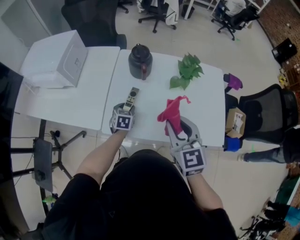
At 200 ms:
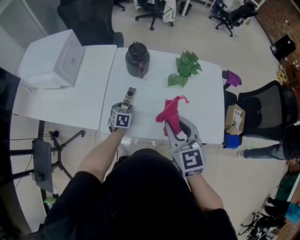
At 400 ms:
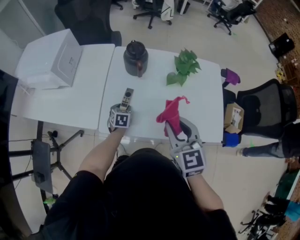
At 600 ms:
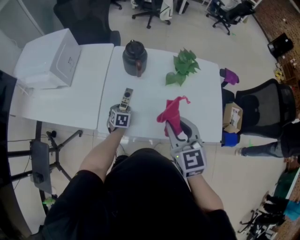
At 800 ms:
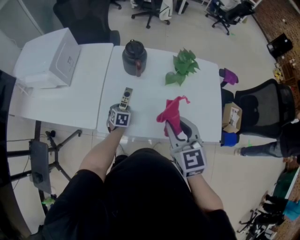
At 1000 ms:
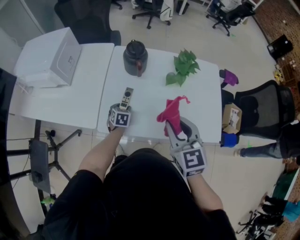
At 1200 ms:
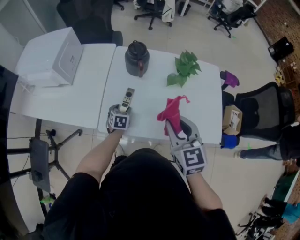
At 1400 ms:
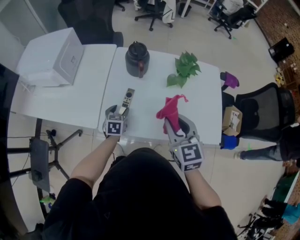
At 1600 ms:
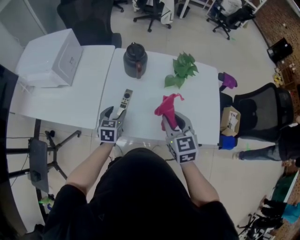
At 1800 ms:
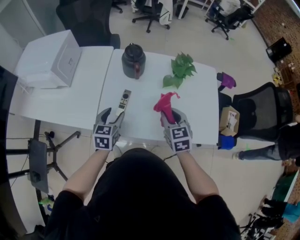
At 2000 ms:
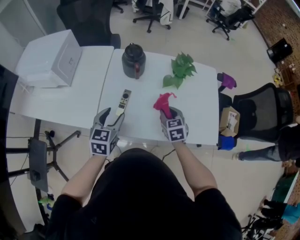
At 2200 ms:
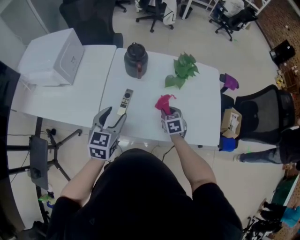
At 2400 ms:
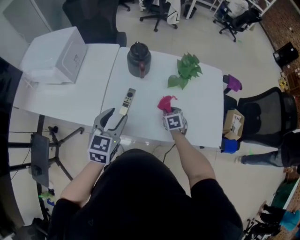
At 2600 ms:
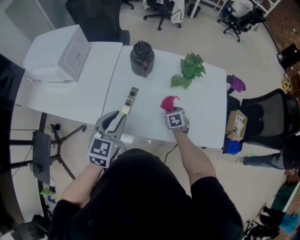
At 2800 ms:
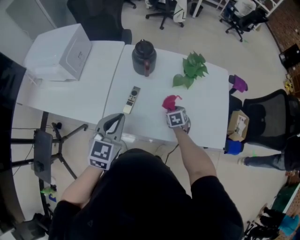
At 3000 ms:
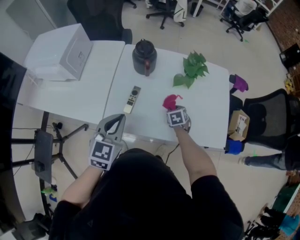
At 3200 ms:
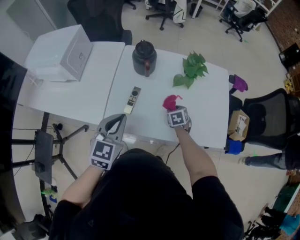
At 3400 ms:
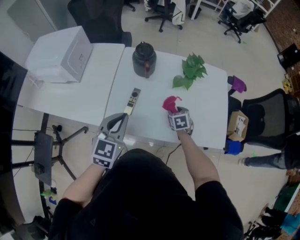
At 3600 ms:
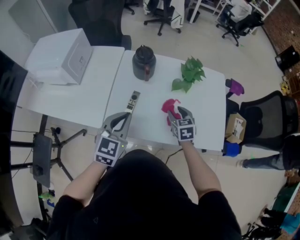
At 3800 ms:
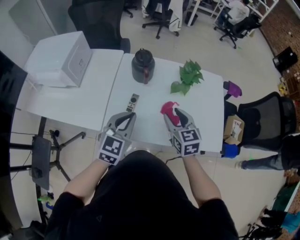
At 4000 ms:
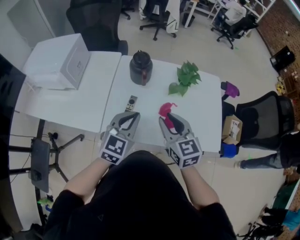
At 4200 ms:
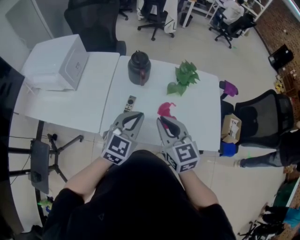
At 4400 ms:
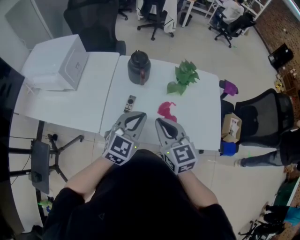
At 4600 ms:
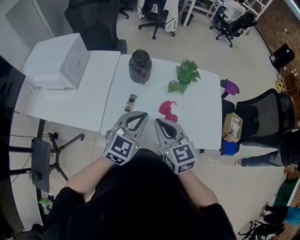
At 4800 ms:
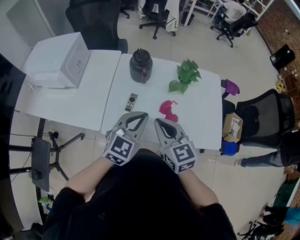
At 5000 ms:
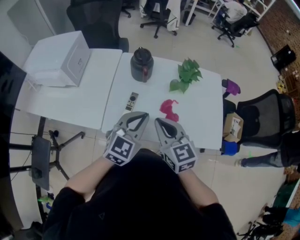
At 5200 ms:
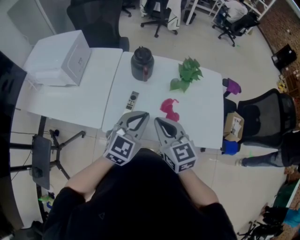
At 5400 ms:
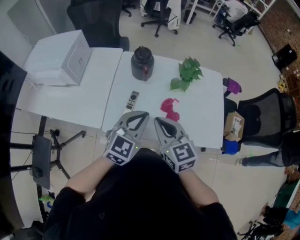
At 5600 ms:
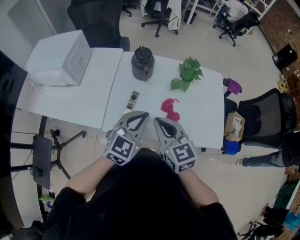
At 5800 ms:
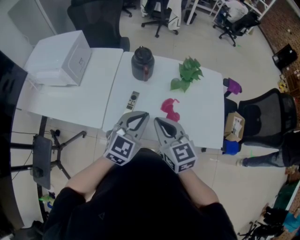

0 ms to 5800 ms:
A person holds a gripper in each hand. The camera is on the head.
0 ms to 1400 ms: There are only small adjustments of the grippers.
1400 ms to 2800 ms: The right gripper moves downward, some 30 cm, and points its fingers approximately 40 degrees further downward, while the left gripper heads upward and backward, covering about 25 cm, turns by approximately 30 degrees, and closes.
2800 ms to 4400 ms: The right gripper heads upward and backward, covering approximately 30 cm, angles its fingers upward, by about 40 degrees, and closes its fingers, while the left gripper goes approximately 10 cm to the right.
4400 ms to 5800 ms: The grippers move only a little.

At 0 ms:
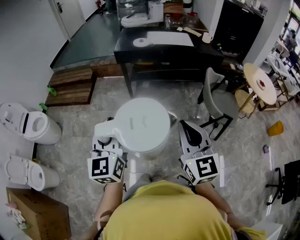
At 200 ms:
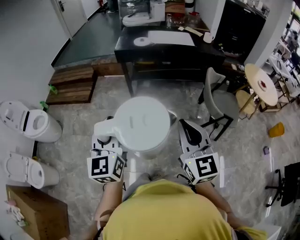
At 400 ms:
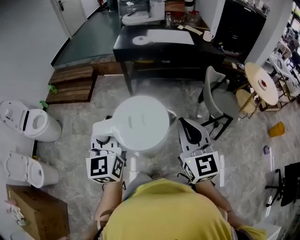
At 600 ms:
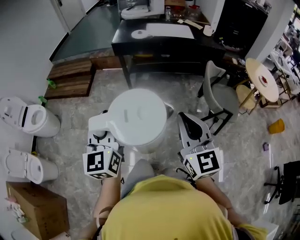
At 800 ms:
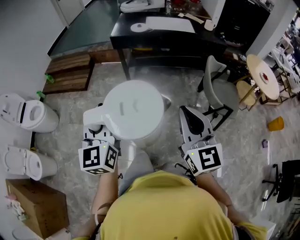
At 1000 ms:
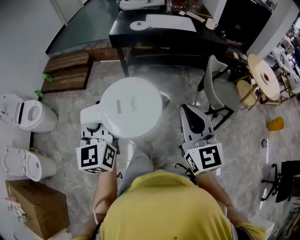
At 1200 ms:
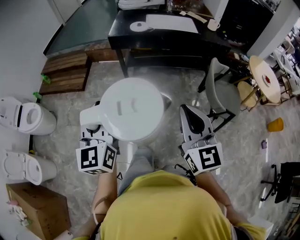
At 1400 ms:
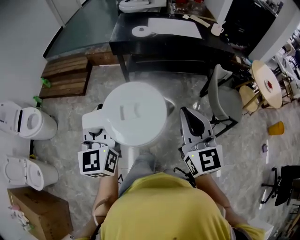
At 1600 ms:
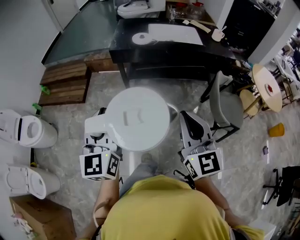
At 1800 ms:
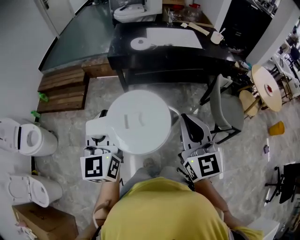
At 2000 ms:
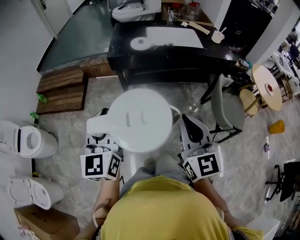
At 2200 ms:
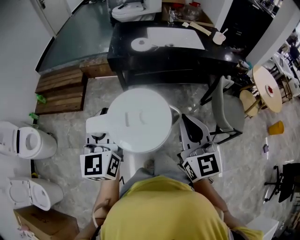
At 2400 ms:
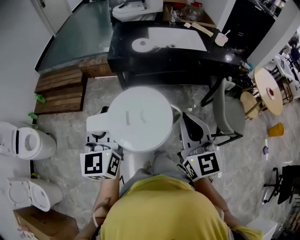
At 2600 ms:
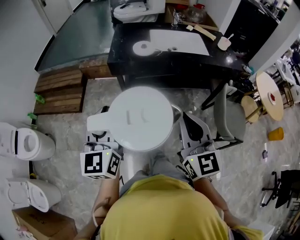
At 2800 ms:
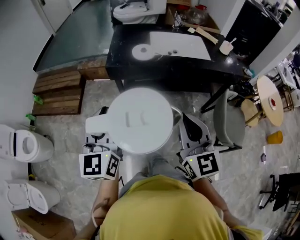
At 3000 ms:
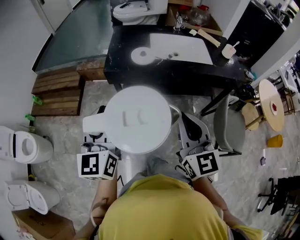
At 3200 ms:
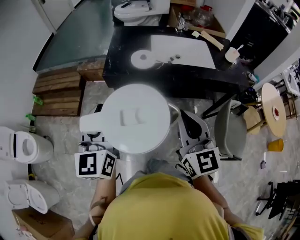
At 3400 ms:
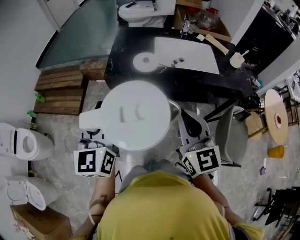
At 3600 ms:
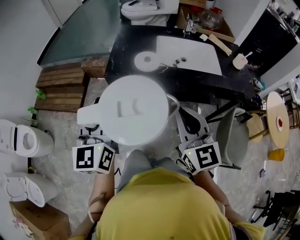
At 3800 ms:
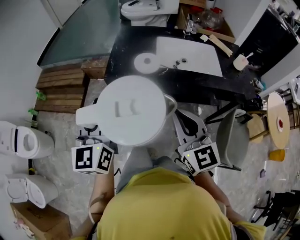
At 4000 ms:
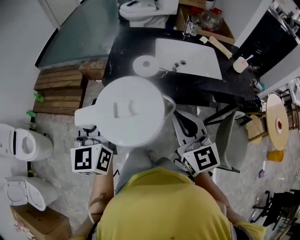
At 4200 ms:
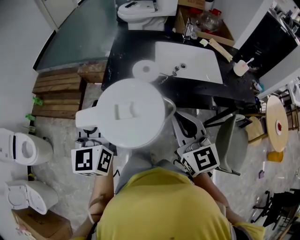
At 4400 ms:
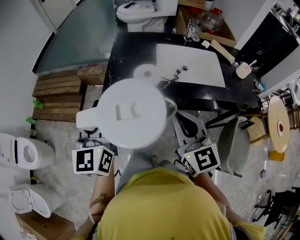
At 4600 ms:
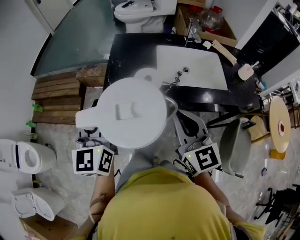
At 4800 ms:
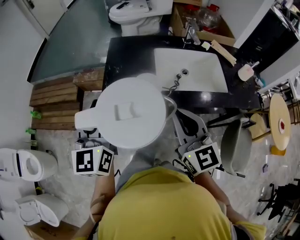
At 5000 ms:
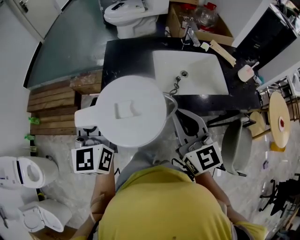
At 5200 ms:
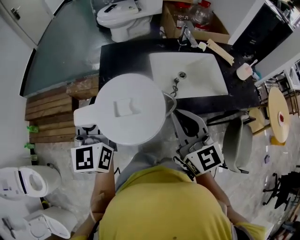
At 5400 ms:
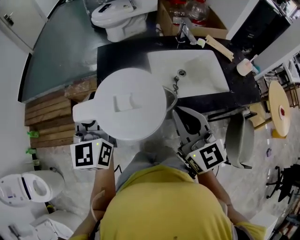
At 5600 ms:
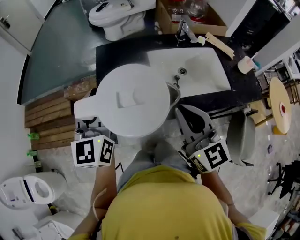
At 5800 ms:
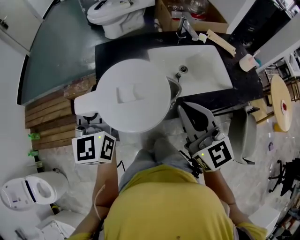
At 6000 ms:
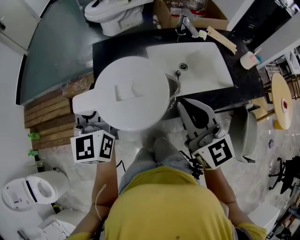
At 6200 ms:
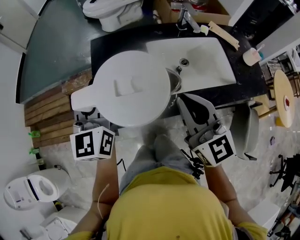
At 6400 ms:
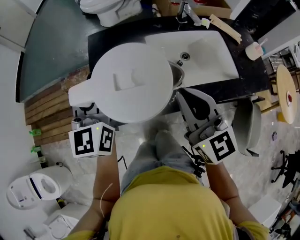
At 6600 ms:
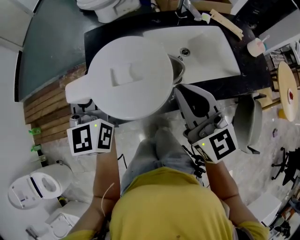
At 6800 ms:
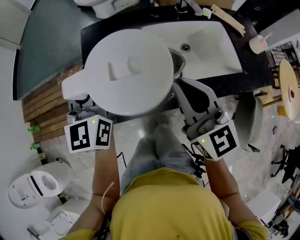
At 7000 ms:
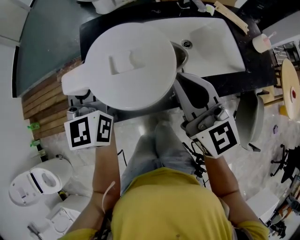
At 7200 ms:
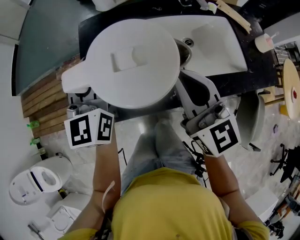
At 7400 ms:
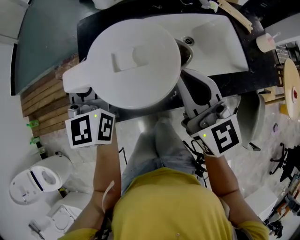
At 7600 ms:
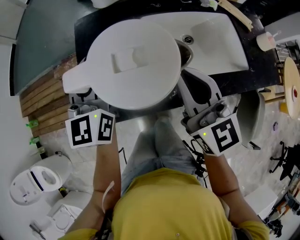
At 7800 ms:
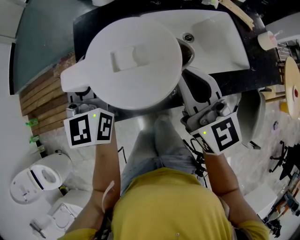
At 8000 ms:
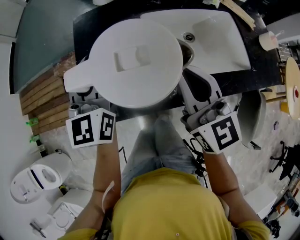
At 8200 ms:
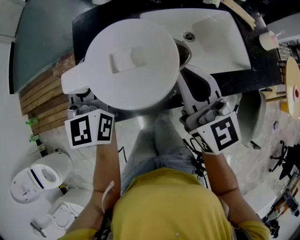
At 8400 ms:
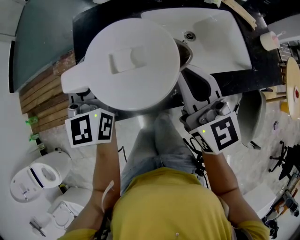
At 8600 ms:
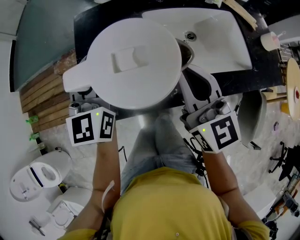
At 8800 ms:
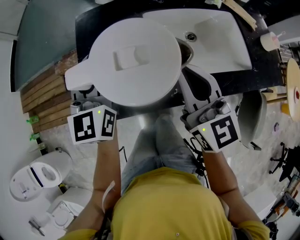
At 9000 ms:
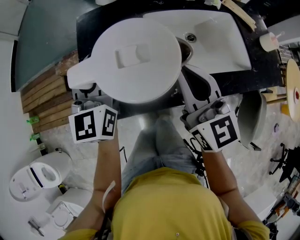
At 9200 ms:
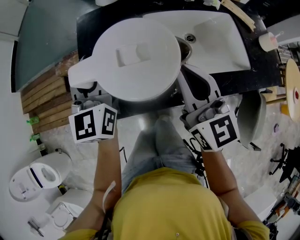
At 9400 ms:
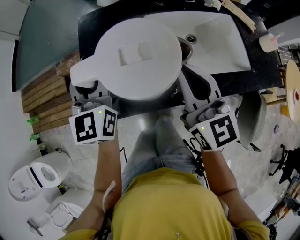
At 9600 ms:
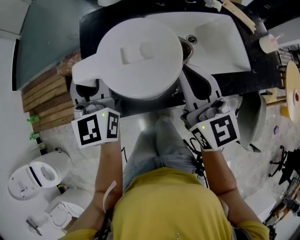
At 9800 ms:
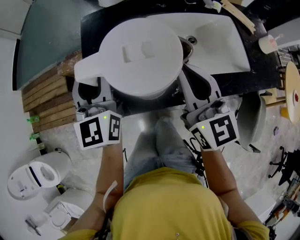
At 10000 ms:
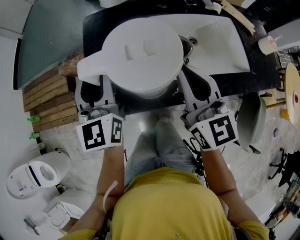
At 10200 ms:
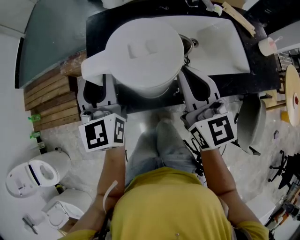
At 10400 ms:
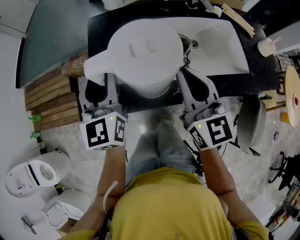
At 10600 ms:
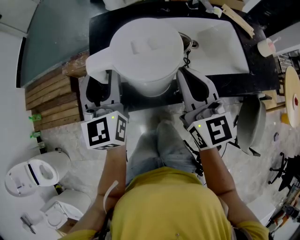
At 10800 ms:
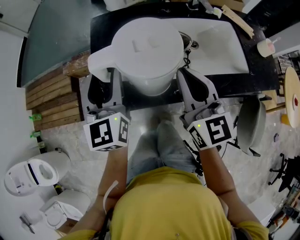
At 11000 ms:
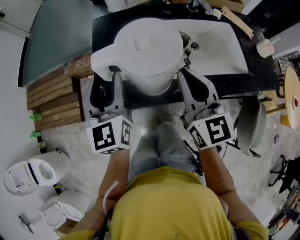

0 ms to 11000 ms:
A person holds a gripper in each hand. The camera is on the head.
0 ms to 1600 ms: The grippers both shift forward by roughly 20 cm.
1600 ms to 3200 ms: The two grippers go roughly 25 cm forward.
3200 ms to 4800 ms: The two grippers go about 25 cm forward.
4800 ms to 6200 ms: The right gripper heads forward, covering about 10 cm; the left gripper is displaced forward by some 15 cm.
6200 ms to 7800 ms: The right gripper is displaced forward and downward by roughly 10 cm; the left gripper shifts some 10 cm downward and forward.
7800 ms to 9400 ms: The left gripper opens up.
9400 ms to 11000 ms: The left gripper is displaced backward by approximately 5 cm.

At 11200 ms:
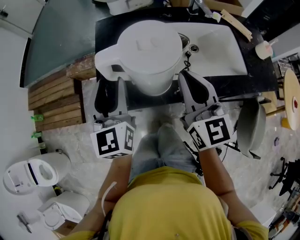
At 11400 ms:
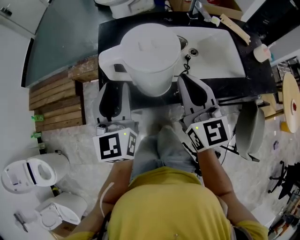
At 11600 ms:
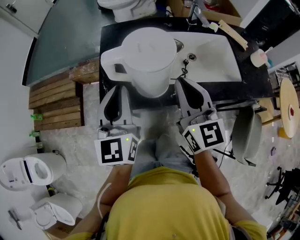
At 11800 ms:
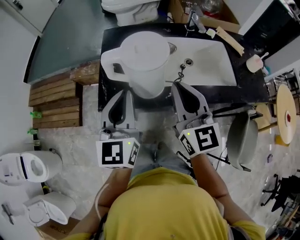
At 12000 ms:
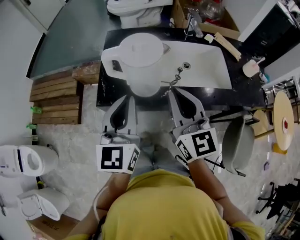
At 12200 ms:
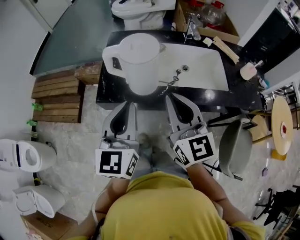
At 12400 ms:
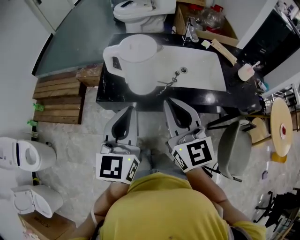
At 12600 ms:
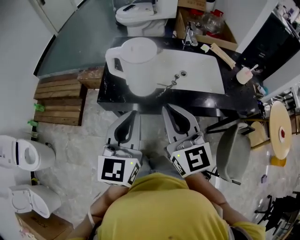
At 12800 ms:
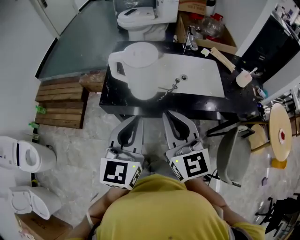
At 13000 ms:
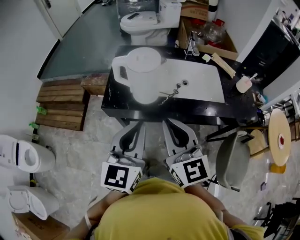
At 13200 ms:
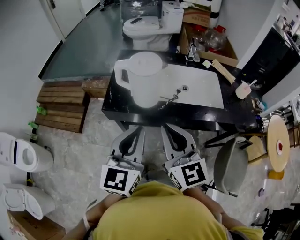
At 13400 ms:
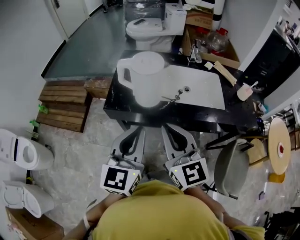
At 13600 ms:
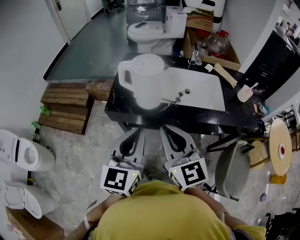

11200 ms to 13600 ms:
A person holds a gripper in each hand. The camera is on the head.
11200 ms to 12400 ms: The right gripper shifts about 15 cm backward and upward, while the left gripper moves backward, to the right and upward, some 20 cm, and closes its fingers.
12400 ms to 13600 ms: The two grippers go about 5 cm backward.

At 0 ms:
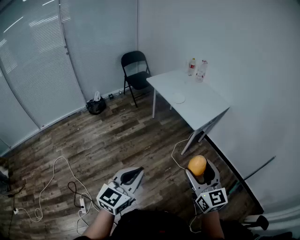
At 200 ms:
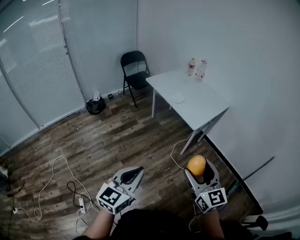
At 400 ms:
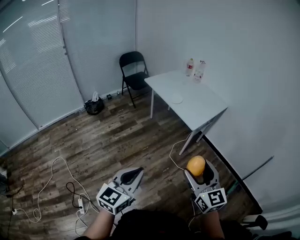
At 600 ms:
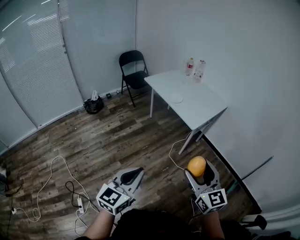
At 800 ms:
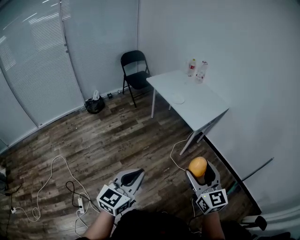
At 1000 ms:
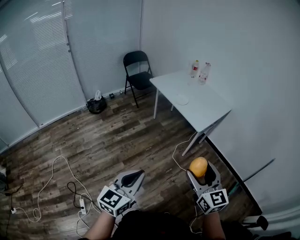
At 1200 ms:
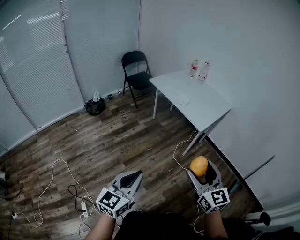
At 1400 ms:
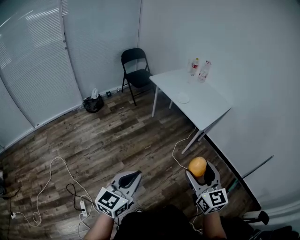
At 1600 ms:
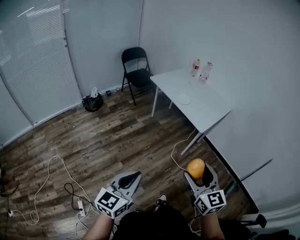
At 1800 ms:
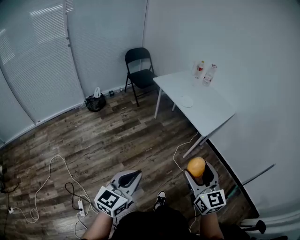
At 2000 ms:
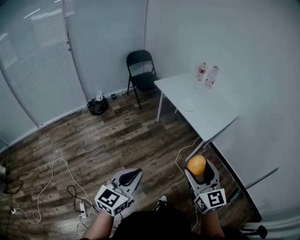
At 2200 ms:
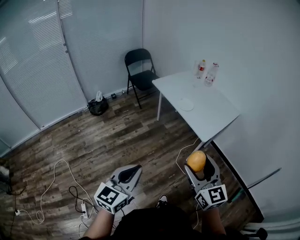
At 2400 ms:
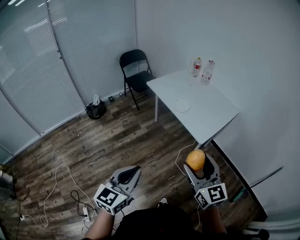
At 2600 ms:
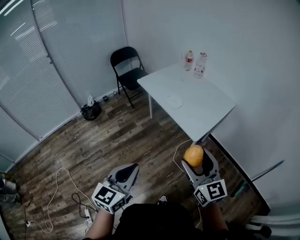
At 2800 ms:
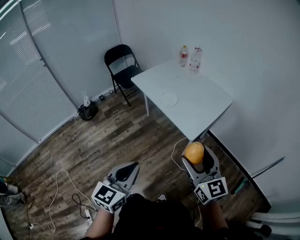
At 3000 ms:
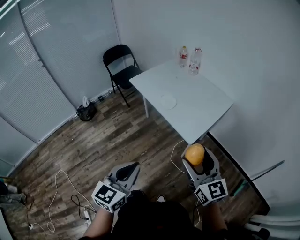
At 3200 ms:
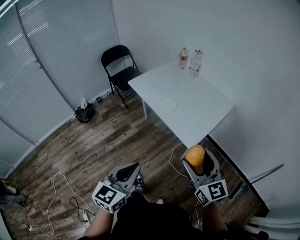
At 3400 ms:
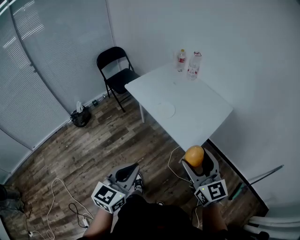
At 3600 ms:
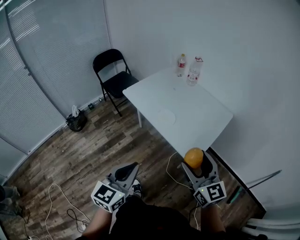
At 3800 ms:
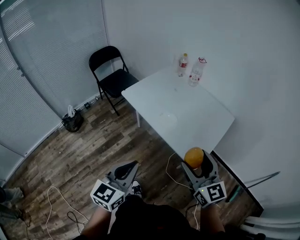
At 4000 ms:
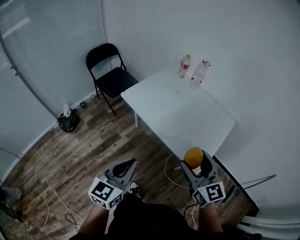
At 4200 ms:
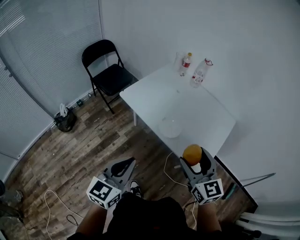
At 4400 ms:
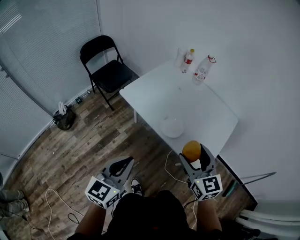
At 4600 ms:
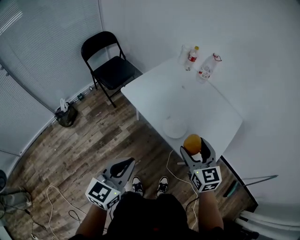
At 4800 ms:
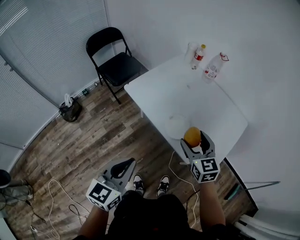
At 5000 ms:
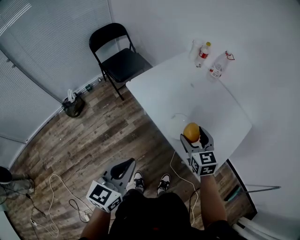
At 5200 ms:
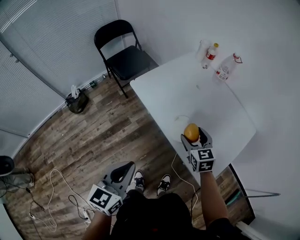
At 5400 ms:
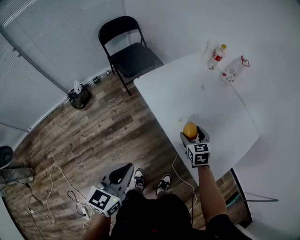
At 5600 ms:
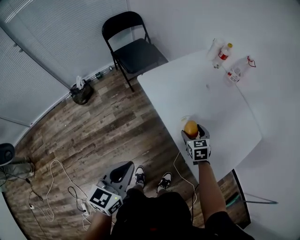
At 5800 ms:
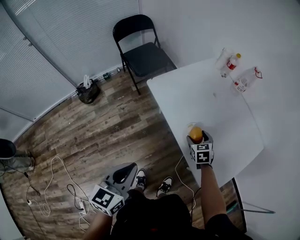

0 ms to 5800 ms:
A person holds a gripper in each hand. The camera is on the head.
0 ms to 1400 ms: Both grippers travel together to the left, about 10 cm.
1400 ms to 2800 ms: Both grippers travel together forward and to the right, roughly 30 cm.
2800 ms to 4400 ms: Both grippers move forward and to the left, roughly 40 cm.
4400 ms to 5800 ms: The right gripper goes roughly 35 cm downward and forward, and angles its fingers downward, by some 30 degrees; the left gripper goes some 5 cm downward, and swivels approximately 20 degrees.
